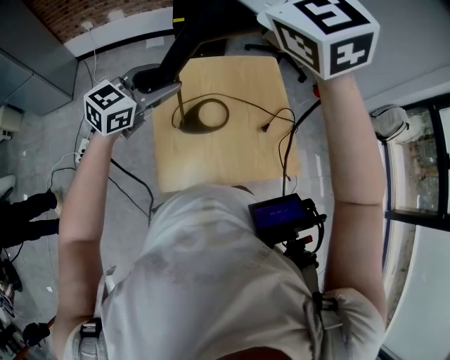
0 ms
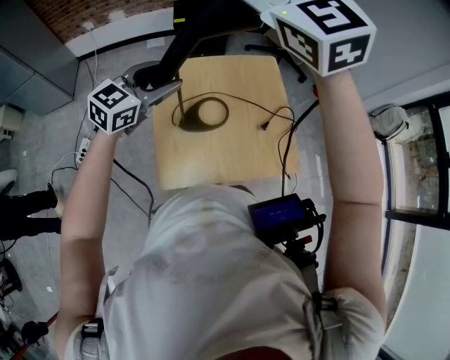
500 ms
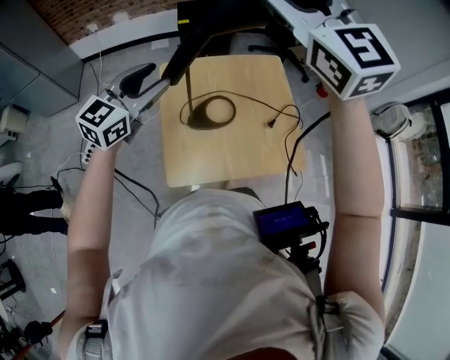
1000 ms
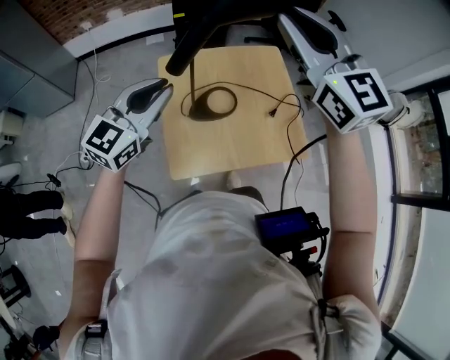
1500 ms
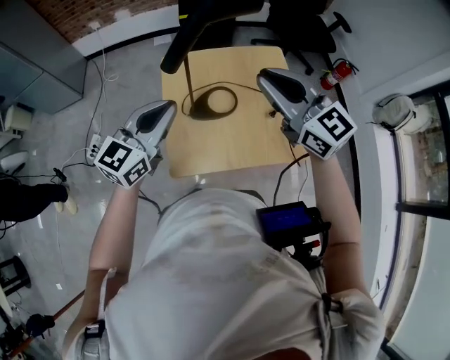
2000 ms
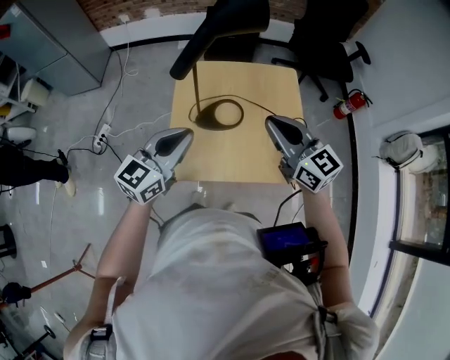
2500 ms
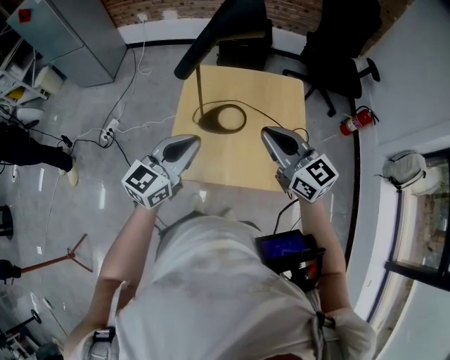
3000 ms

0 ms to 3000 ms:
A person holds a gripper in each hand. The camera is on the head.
0 ms to 1500 ms: The right gripper is displaced to the right and backward by some 10 cm, and closes its fingers. Meanwhile the left gripper shifts about 10 cm backward, and closes.
1500 ms to 3000 ms: The right gripper heads downward and backward, covering about 25 cm, and turns by roughly 40 degrees; the left gripper goes roughly 15 cm backward, to the right and downward.

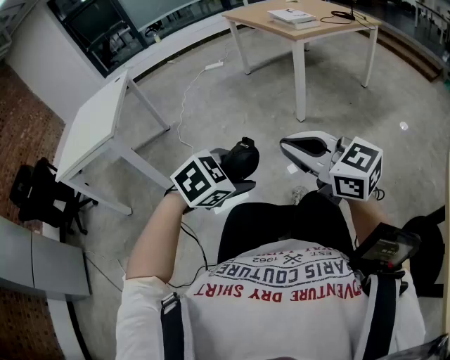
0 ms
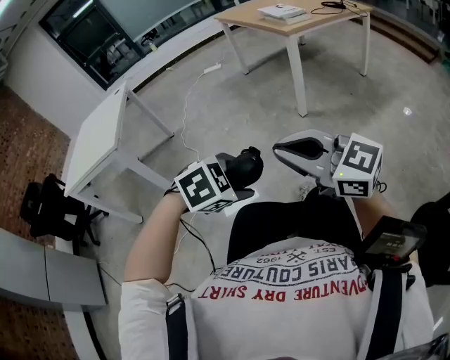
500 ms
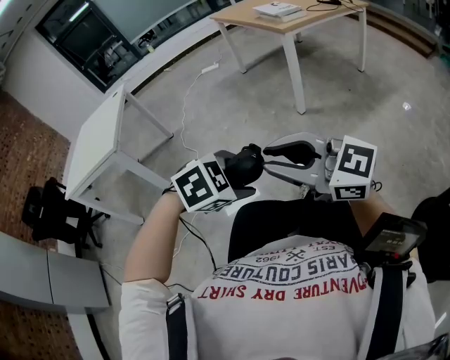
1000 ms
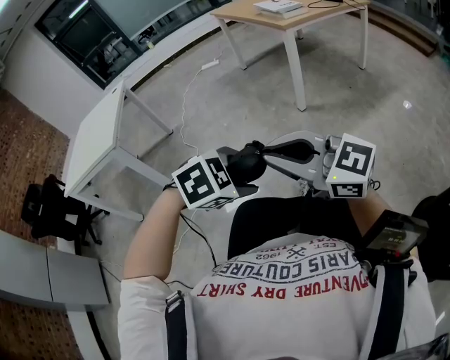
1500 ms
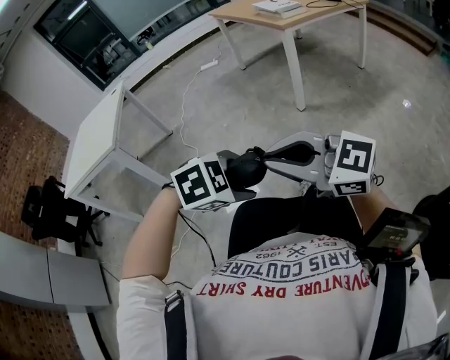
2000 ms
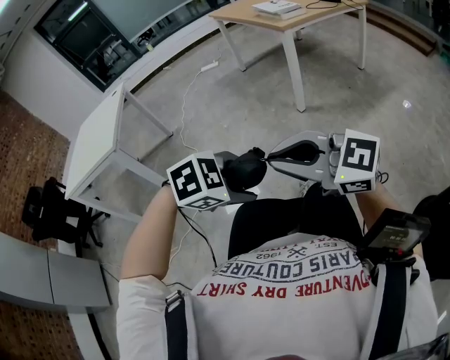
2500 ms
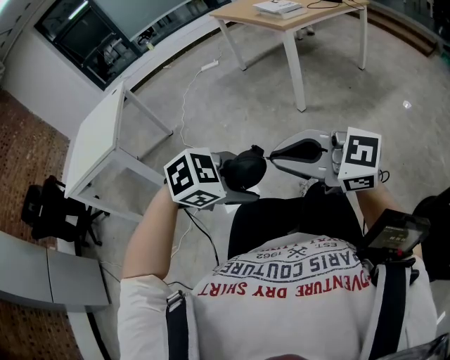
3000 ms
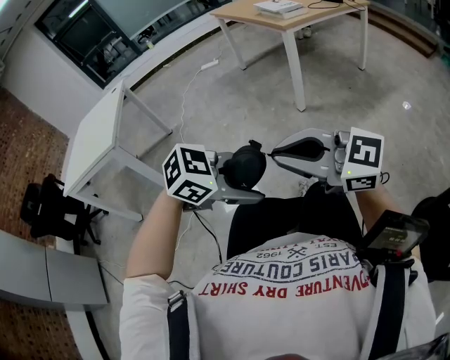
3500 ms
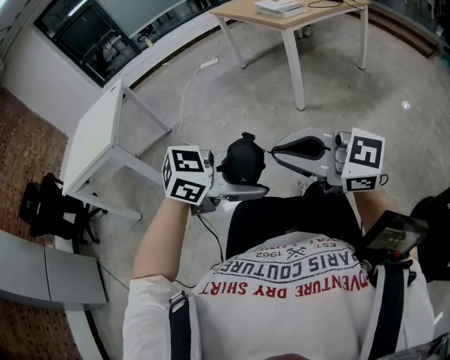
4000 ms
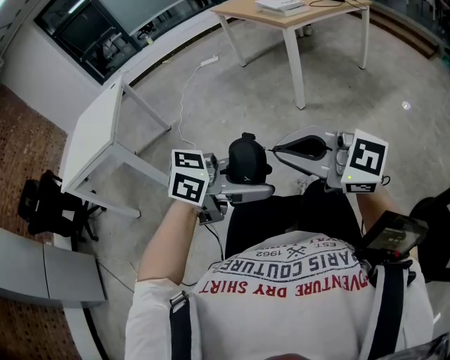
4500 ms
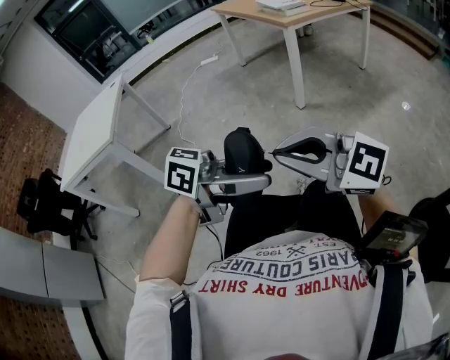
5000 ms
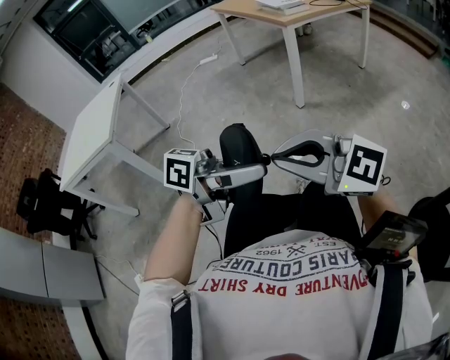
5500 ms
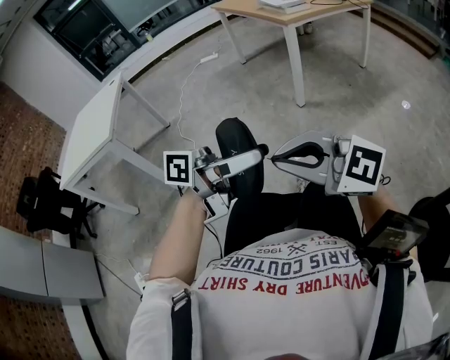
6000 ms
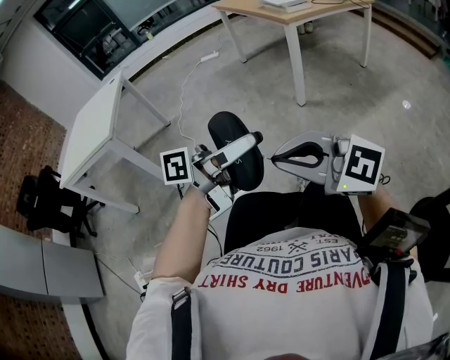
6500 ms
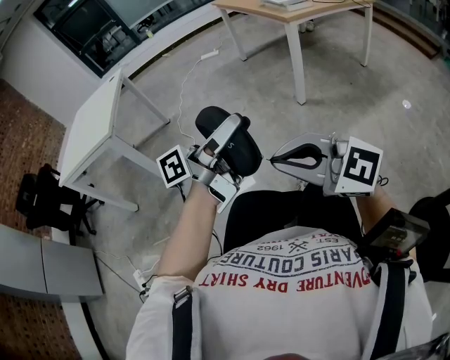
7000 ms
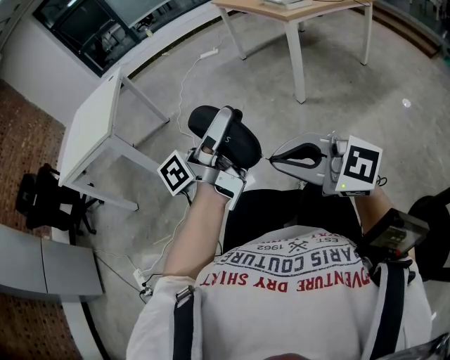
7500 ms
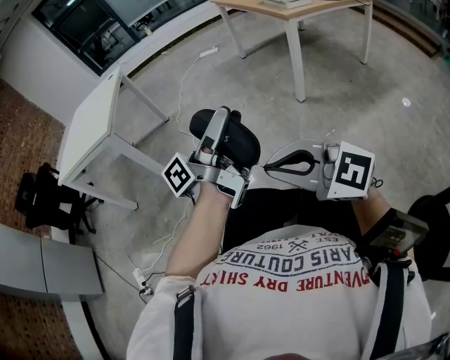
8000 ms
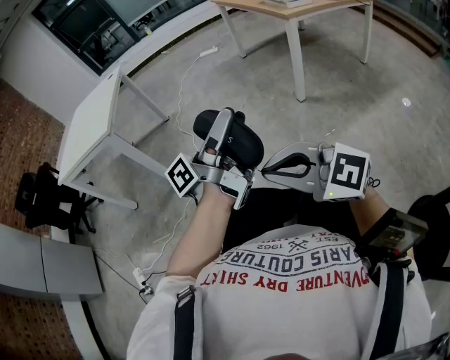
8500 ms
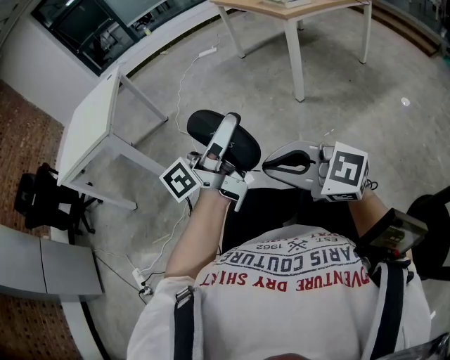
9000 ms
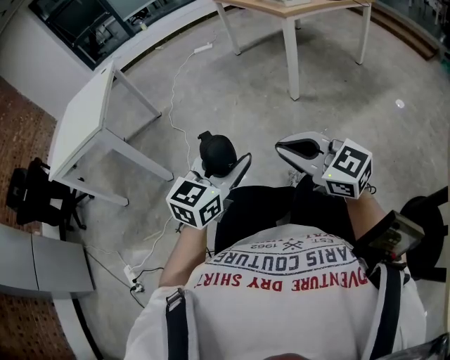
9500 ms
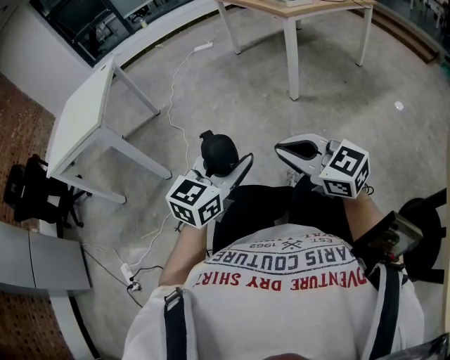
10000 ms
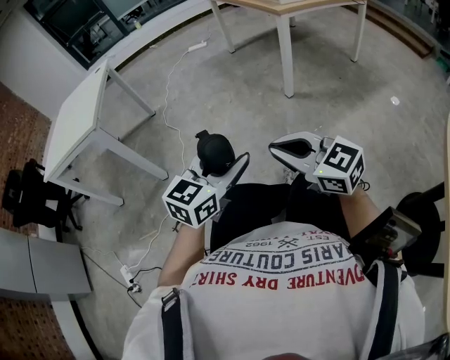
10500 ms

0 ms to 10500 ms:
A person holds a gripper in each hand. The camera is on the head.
0 ms to 2000 ms: The right gripper shifts by roughly 5 cm.
2000 ms to 4000 ms: The left gripper heads upward, covering approximately 5 cm, and tilts its fingers roughly 40 degrees upward.
4000 ms to 6500 ms: The left gripper goes roughly 5 cm upward, and points its fingers roughly 40 degrees further upward.
6500 ms to 8500 ms: The left gripper changes place by approximately 5 cm, and rotates roughly 30 degrees.
8500 ms to 10500 ms: The right gripper travels forward and to the right by about 10 cm, and turns by approximately 30 degrees; the left gripper goes approximately 10 cm downward, and rolls clockwise, seen from behind, by approximately 70 degrees.

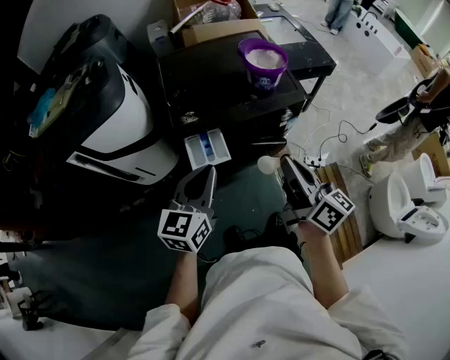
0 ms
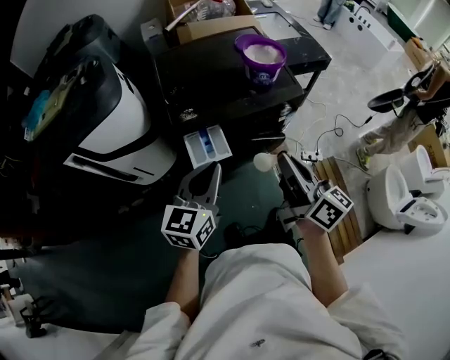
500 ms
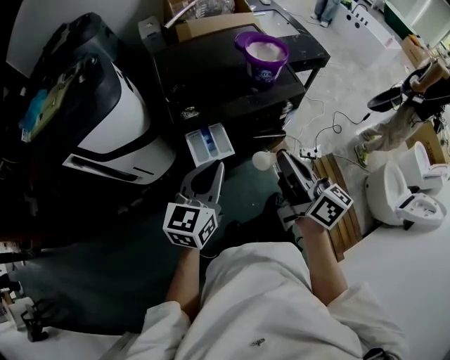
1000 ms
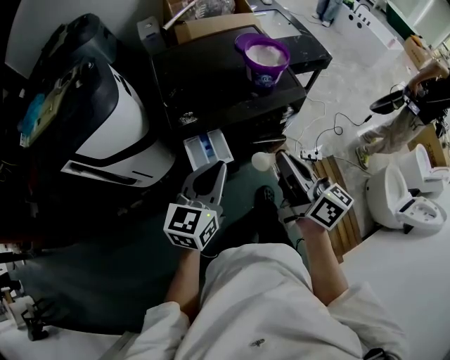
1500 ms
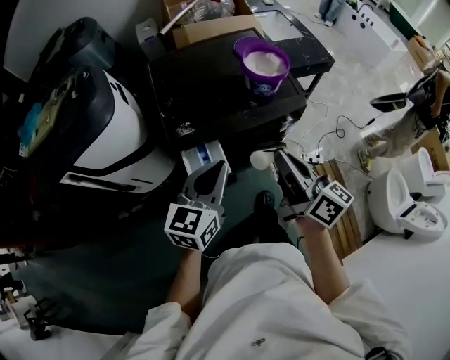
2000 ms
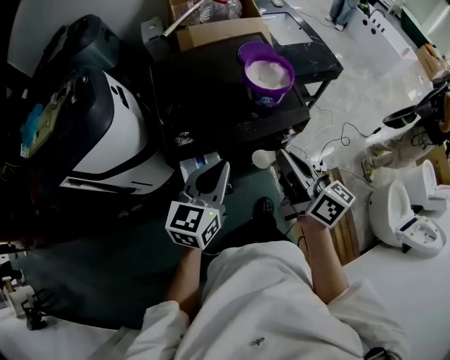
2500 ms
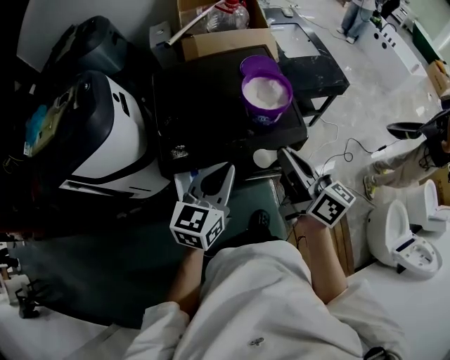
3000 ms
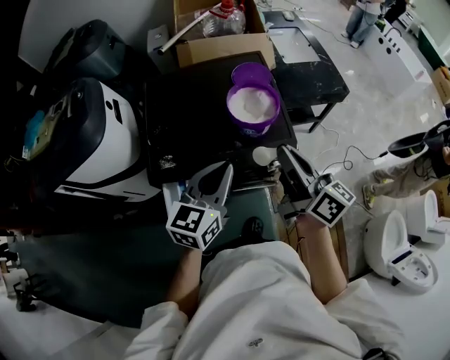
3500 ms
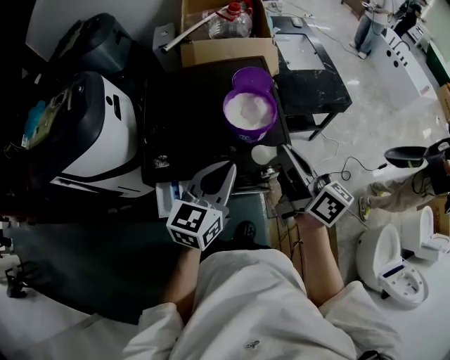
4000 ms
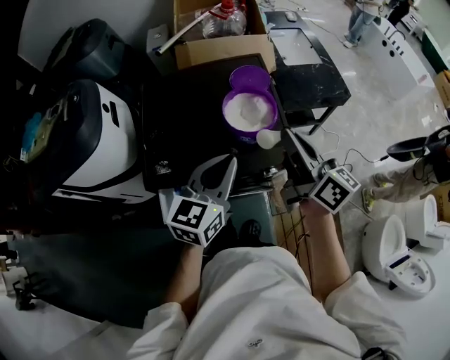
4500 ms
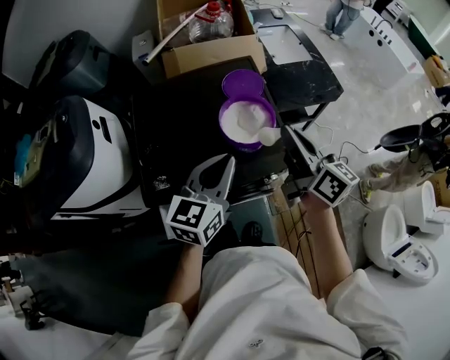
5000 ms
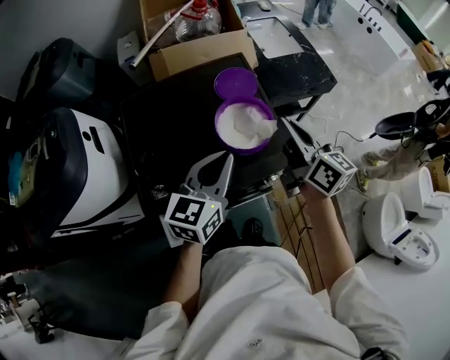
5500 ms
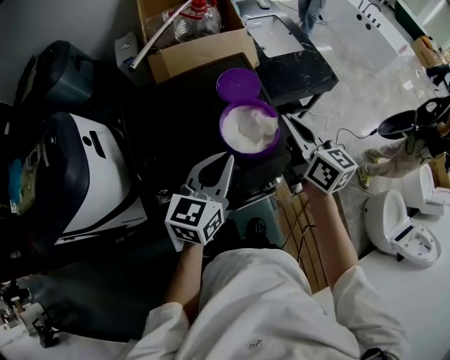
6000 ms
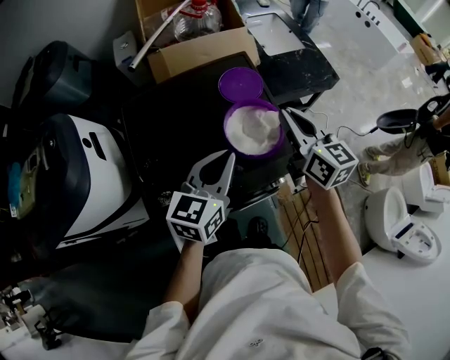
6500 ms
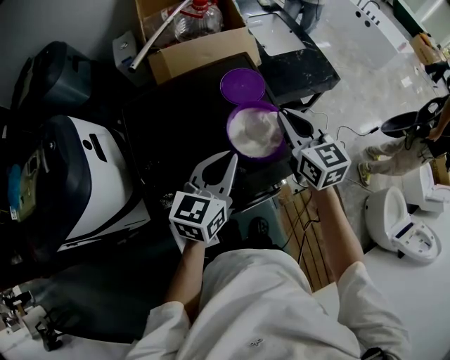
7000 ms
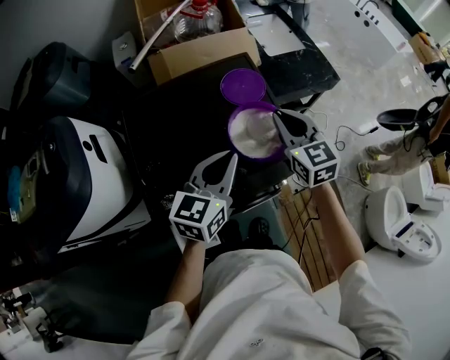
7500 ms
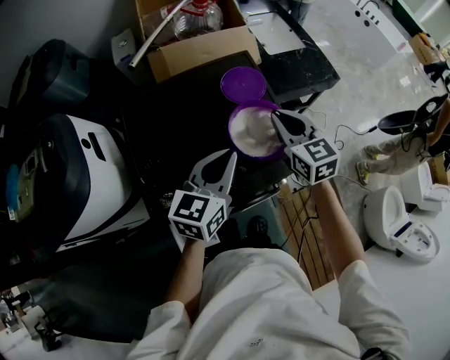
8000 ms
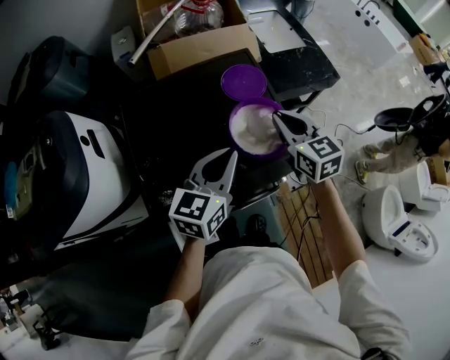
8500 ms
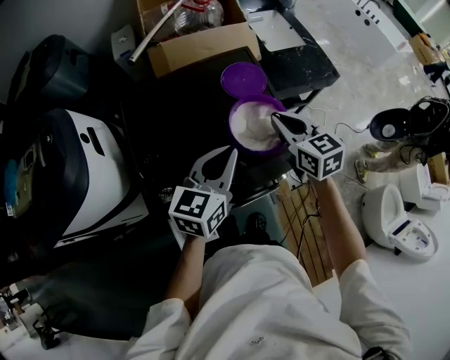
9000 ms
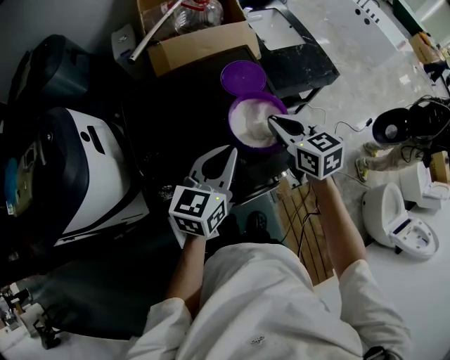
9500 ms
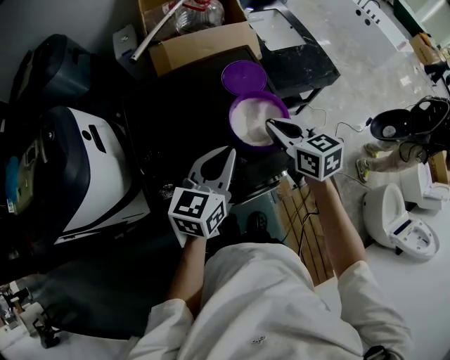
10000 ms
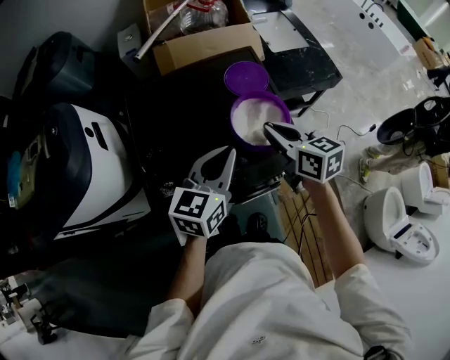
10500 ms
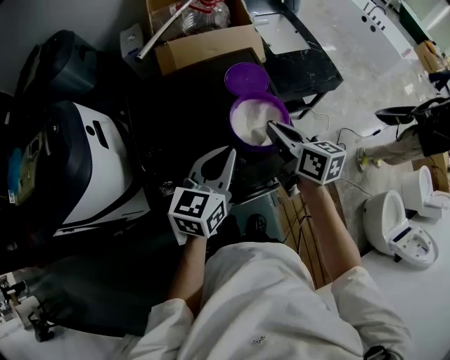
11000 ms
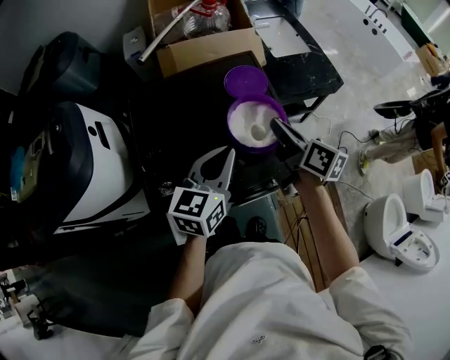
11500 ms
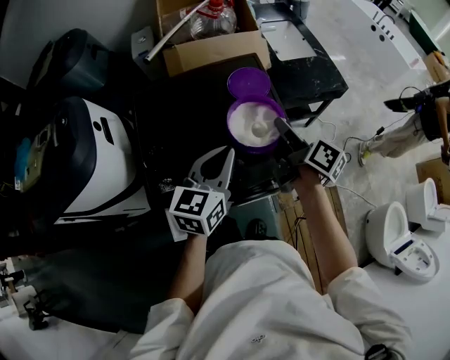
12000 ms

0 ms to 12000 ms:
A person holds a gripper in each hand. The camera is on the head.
0 ms to 2000 ms: Both grippers travel together forward, about 5 cm.
2000 ms to 4000 ms: The left gripper moves to the right and forward, roughly 20 cm. Meanwhile the right gripper shifts about 25 cm forward and to the right.
4000 ms to 6000 ms: The two grippers go about 10 cm forward. The right gripper turns by some 20 degrees.
6000 ms to 8000 ms: The right gripper moves roughly 5 cm, and turns by some 30 degrees.
8000 ms to 10000 ms: The right gripper changes place by roughly 5 cm.
10000 ms to 12000 ms: The right gripper changes place by roughly 5 cm, and rotates around the line of its fingers by about 50 degrees, clockwise from behind.

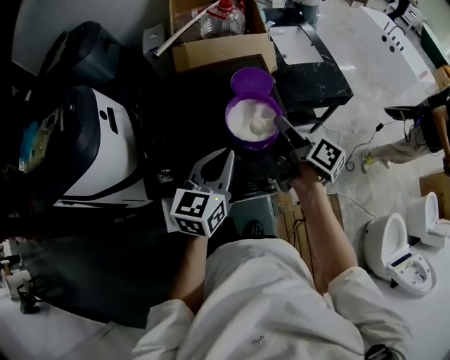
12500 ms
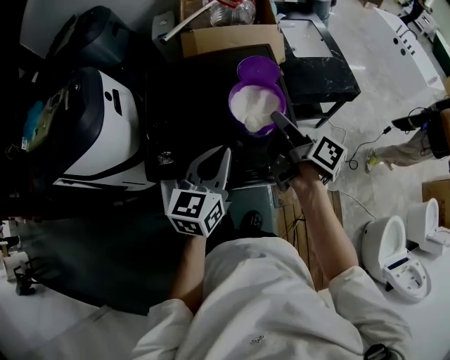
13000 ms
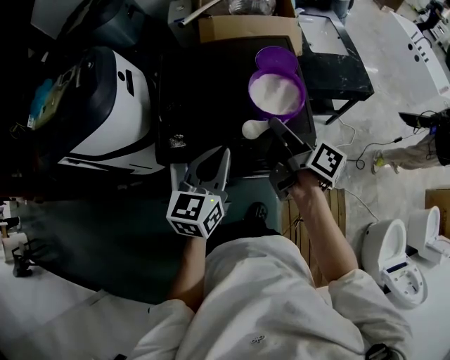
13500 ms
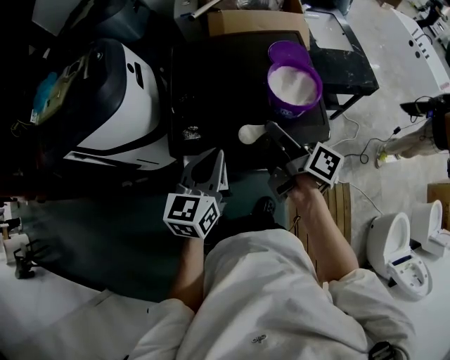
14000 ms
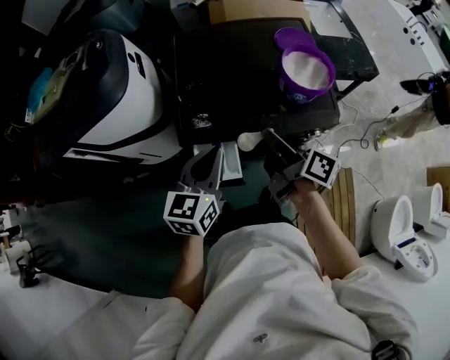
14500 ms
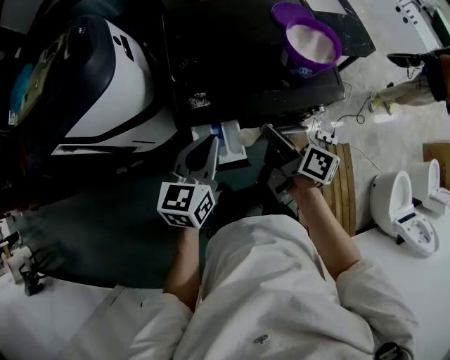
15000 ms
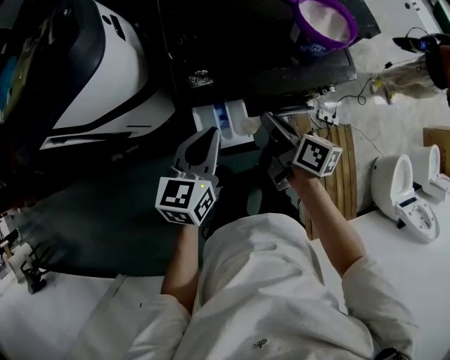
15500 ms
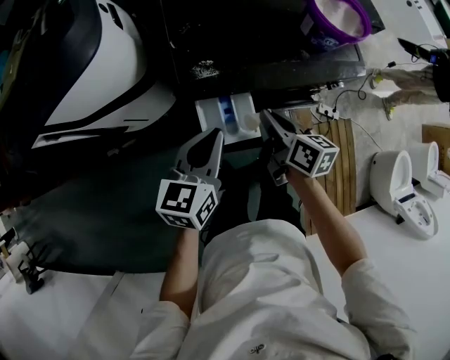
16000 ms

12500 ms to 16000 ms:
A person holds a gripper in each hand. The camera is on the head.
12500 ms to 14500 ms: Both grippers move to the left and backward, roughly 25 cm.
14500 ms to 16000 ms: Both grippers travel together downward and to the left, about 15 cm. The right gripper swivels some 30 degrees.
